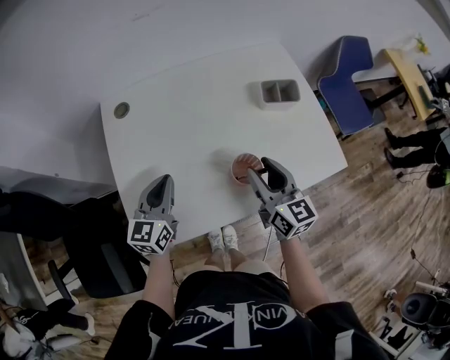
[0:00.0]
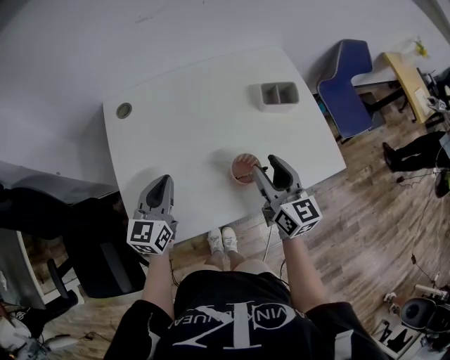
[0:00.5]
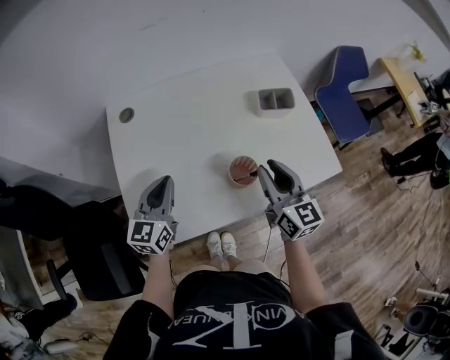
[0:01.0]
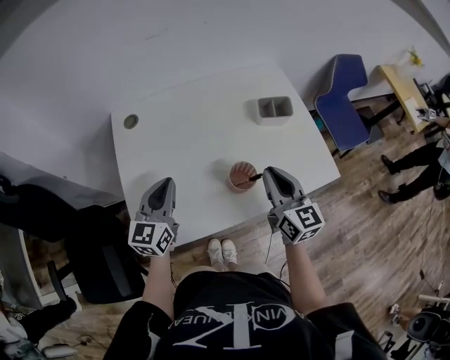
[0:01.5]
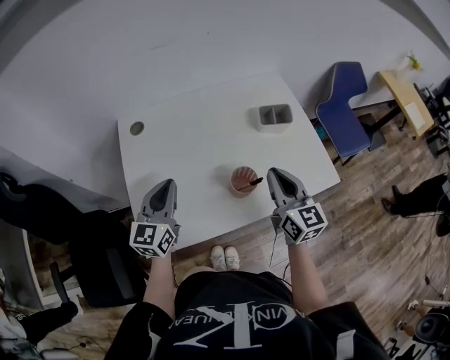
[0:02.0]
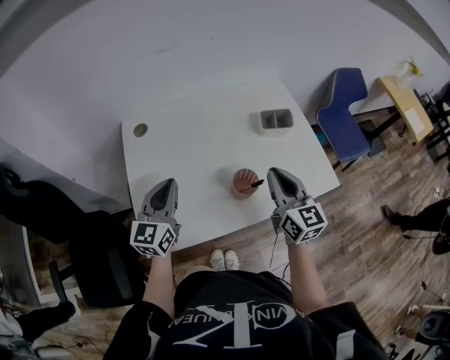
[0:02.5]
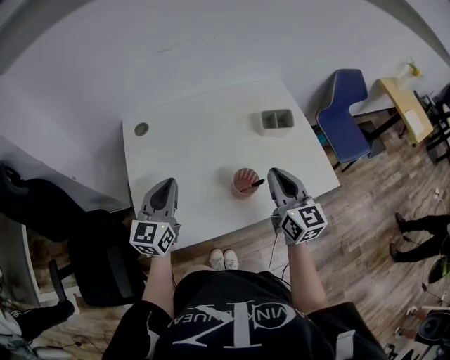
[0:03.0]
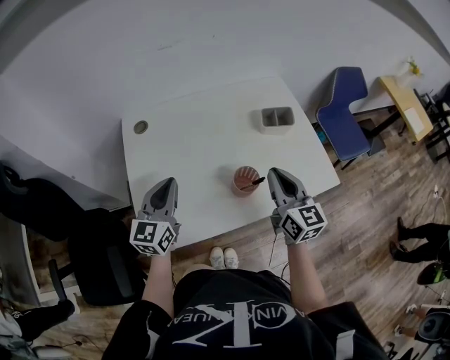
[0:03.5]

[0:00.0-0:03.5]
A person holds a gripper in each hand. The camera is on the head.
0:00.0 to 0:02.0: The two grippers go some 5 cm upward. The right gripper closes.
0:02.0 to 0:03.5: The grippers stay close to where they were, moving slightly.

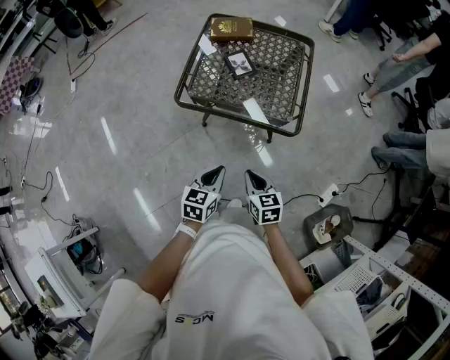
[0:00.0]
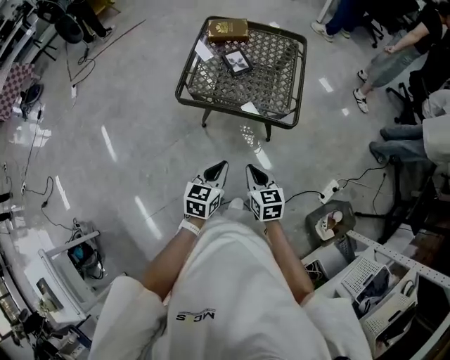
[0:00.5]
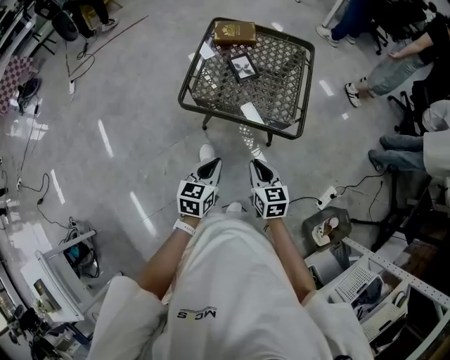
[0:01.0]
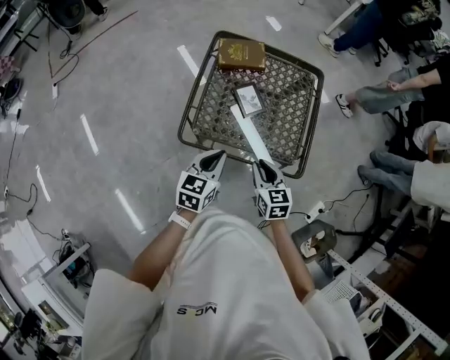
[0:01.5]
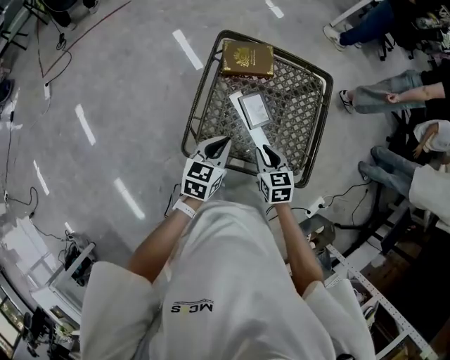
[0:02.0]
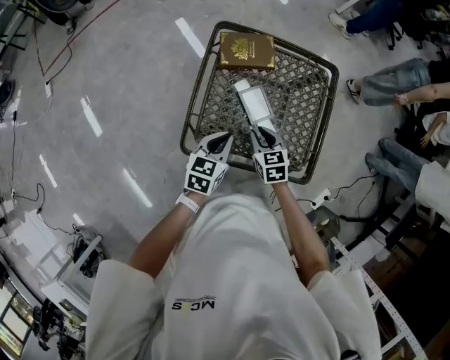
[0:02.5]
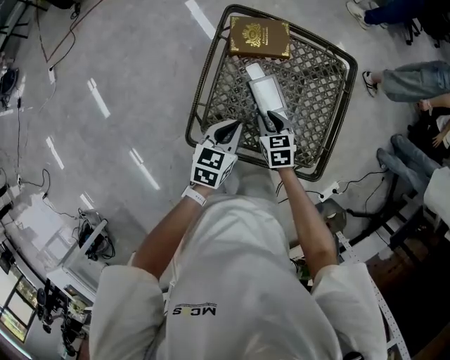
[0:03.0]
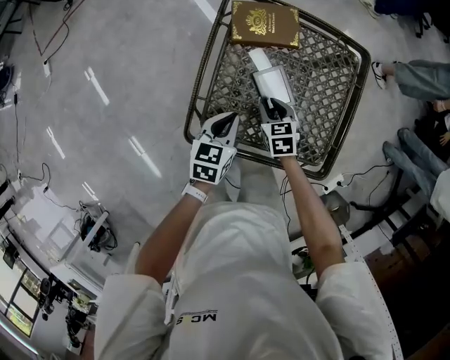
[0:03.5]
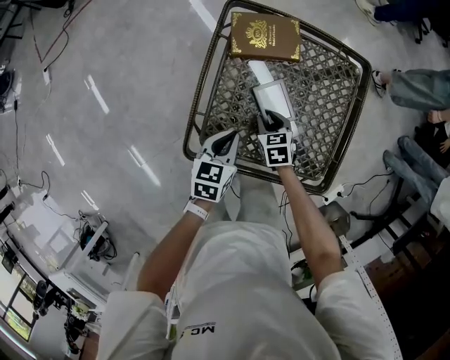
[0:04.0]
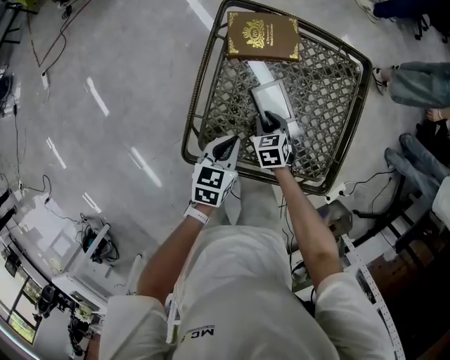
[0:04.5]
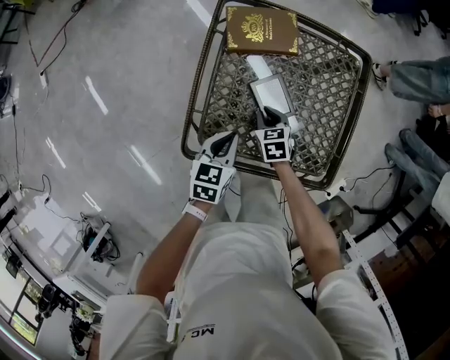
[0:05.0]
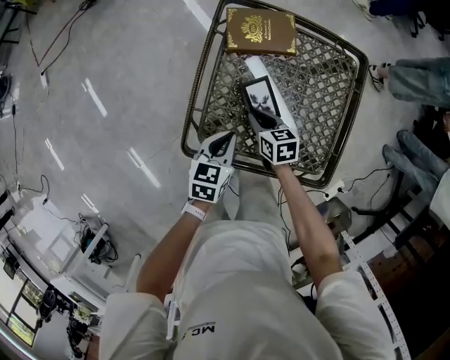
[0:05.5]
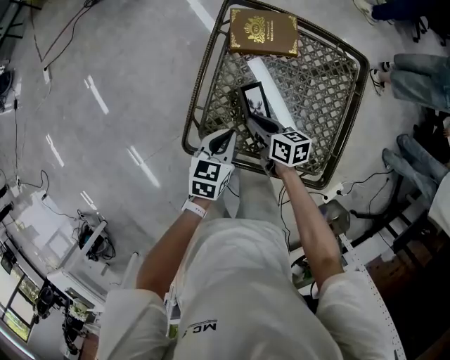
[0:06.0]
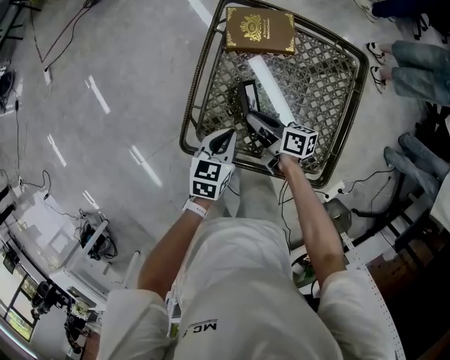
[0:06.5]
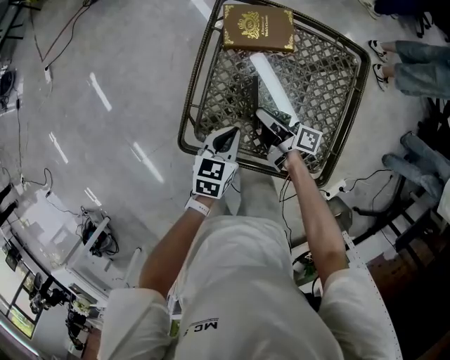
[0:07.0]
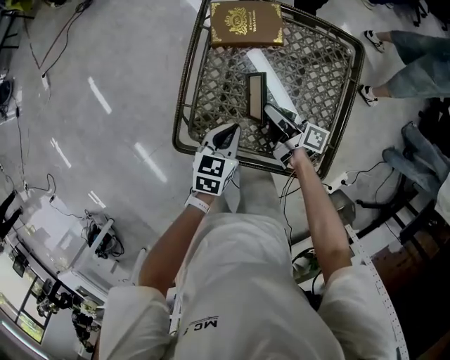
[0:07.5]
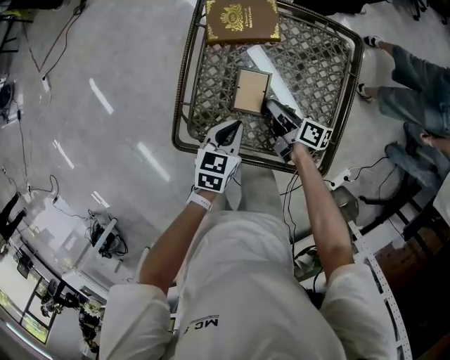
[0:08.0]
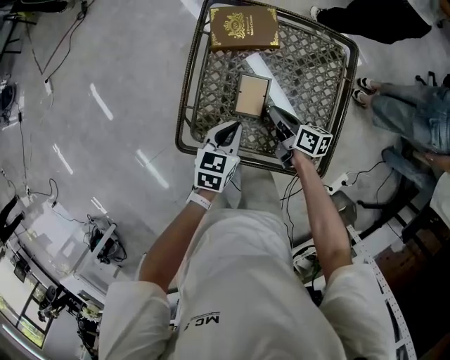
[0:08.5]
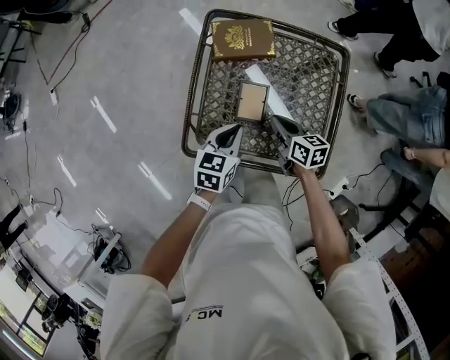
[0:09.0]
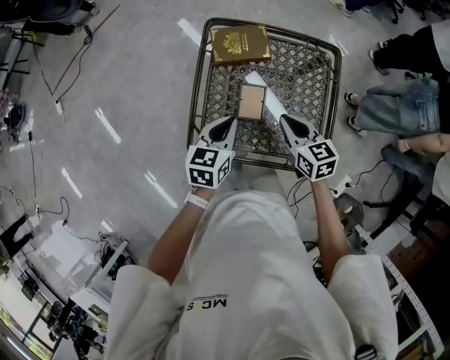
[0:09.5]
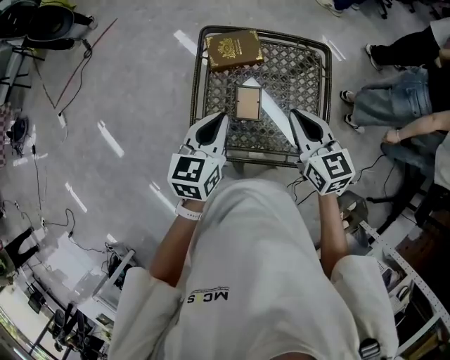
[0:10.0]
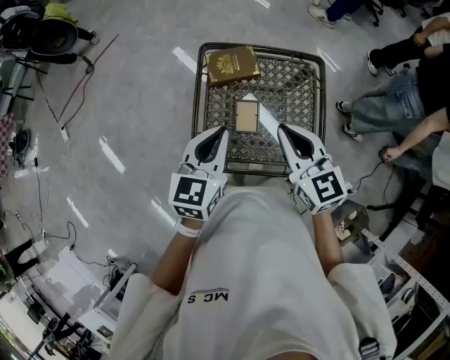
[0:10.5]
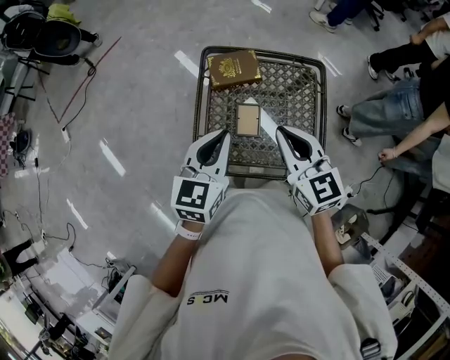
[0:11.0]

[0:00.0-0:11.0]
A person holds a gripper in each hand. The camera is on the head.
0:00.0 to 0:02.0: Both grippers travel together forward, about 35 cm.
0:02.0 to 0:03.5: The left gripper shifts about 10 cm downward and forward; the right gripper goes about 15 cm downward and forward.
0:03.5 to 0:05.5: There are only small adjustments of the grippers.
0:05.5 to 0:07.5: The grippers both shift to the right by some 5 cm. The right gripper tilts its fingers about 40 degrees upward.
0:07.5 to 0:09.0: The left gripper goes about 5 cm upward, while the right gripper rotates roughly 40 degrees.
0:09.0 to 0:11.0: The grippers both shift upward by roughly 25 cm. The left gripper rotates some 20 degrees, while the right gripper changes its angle by about 40 degrees.

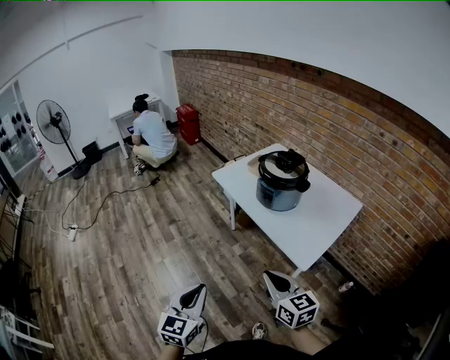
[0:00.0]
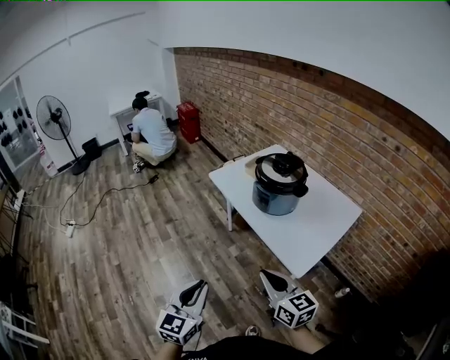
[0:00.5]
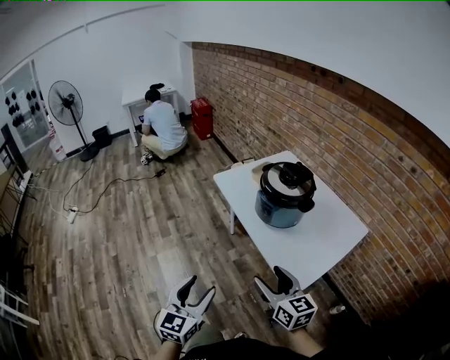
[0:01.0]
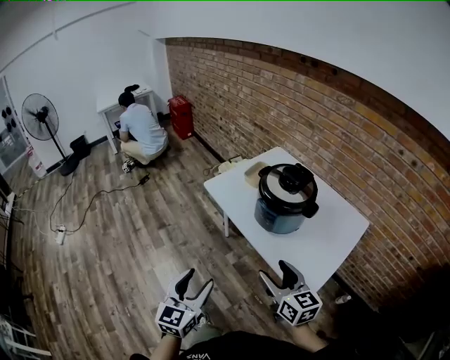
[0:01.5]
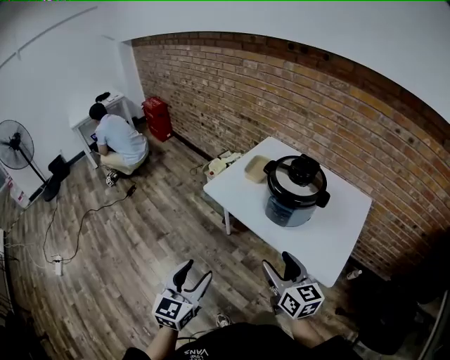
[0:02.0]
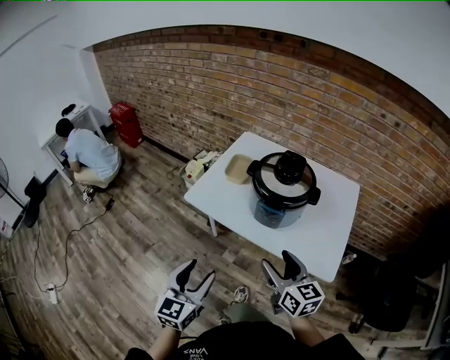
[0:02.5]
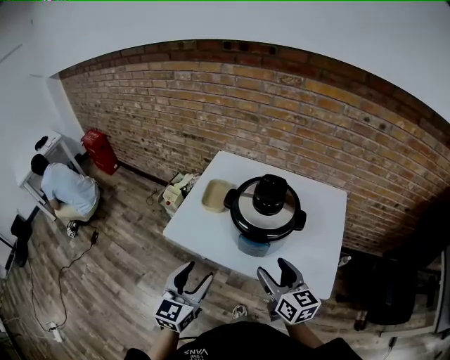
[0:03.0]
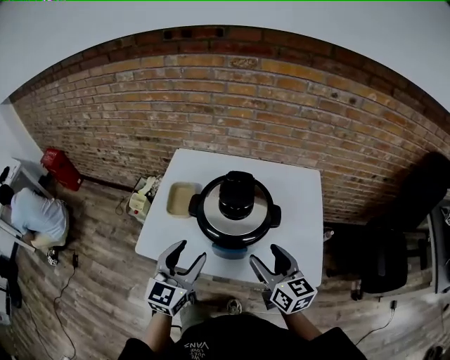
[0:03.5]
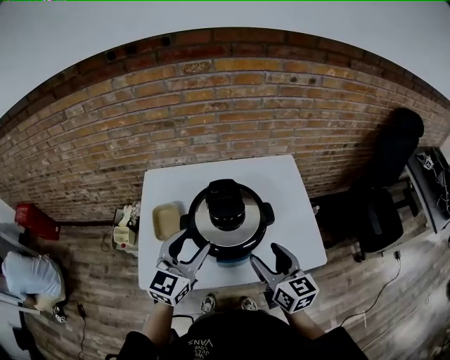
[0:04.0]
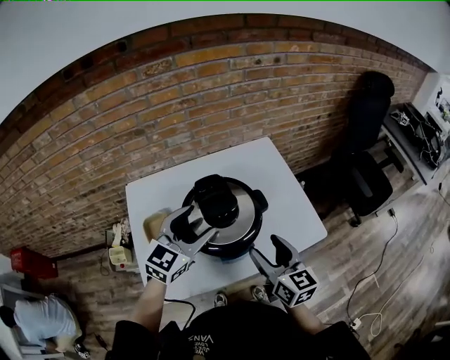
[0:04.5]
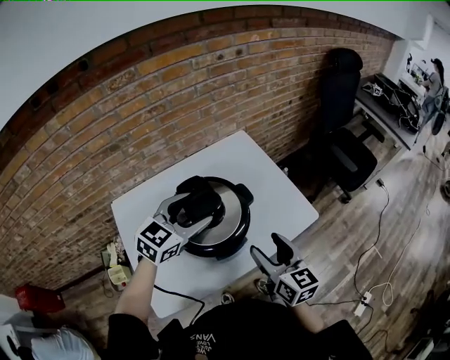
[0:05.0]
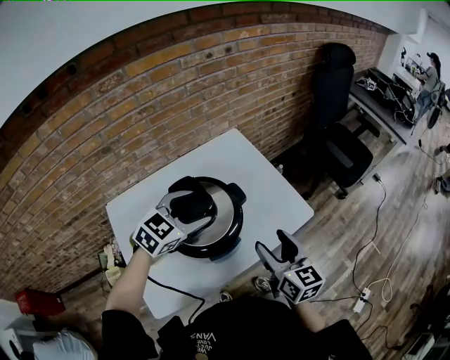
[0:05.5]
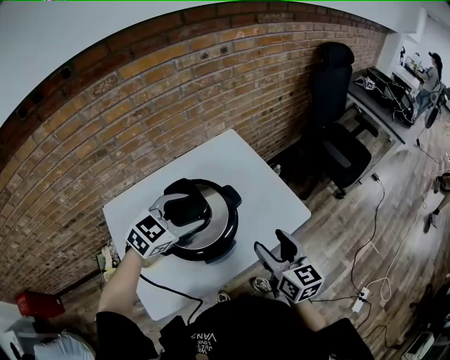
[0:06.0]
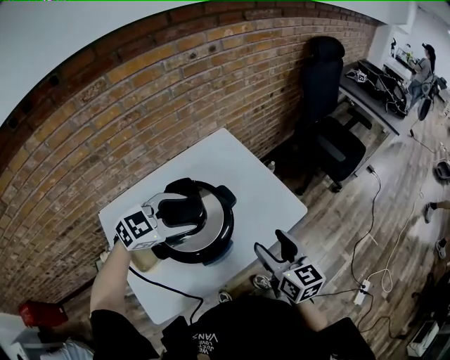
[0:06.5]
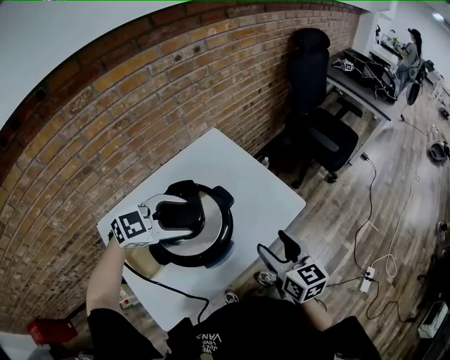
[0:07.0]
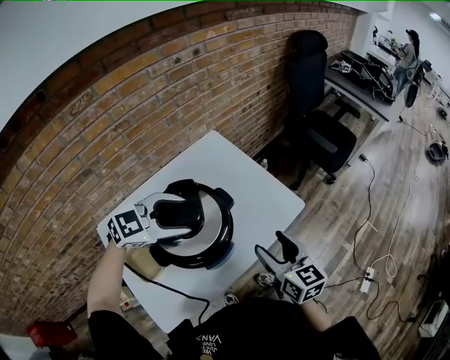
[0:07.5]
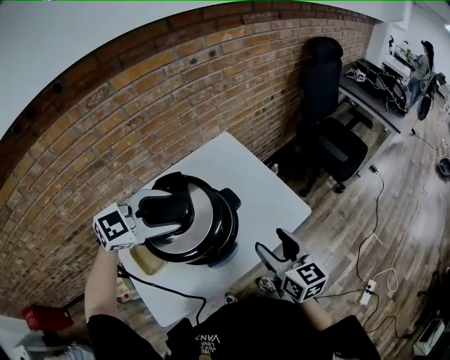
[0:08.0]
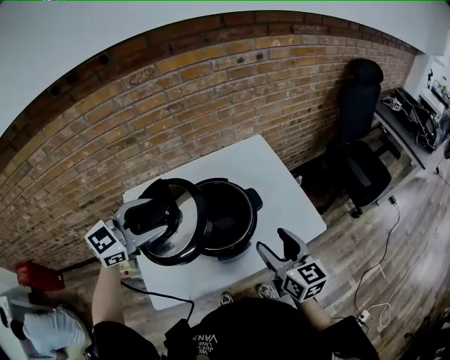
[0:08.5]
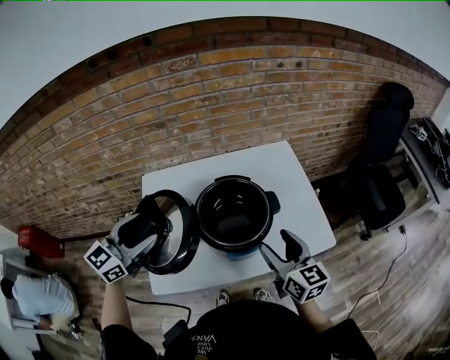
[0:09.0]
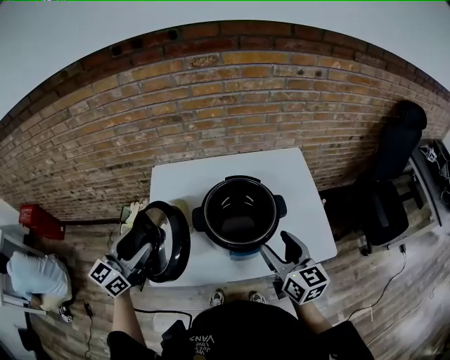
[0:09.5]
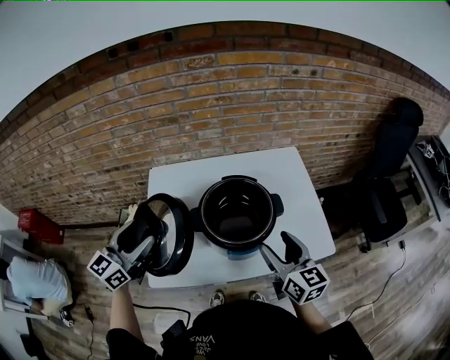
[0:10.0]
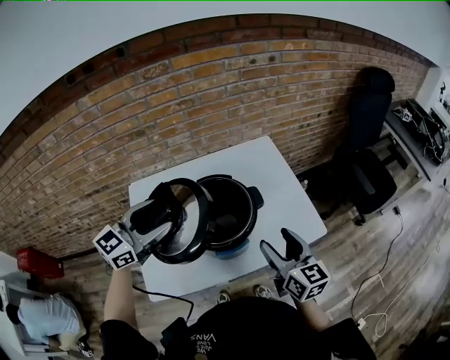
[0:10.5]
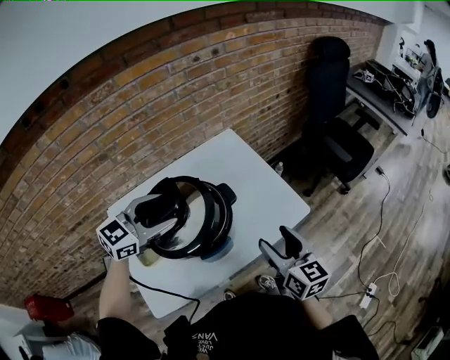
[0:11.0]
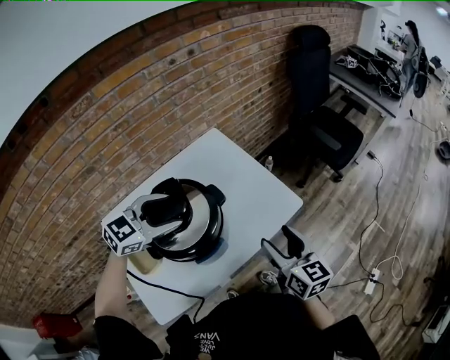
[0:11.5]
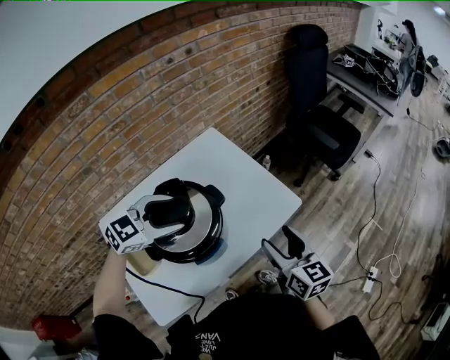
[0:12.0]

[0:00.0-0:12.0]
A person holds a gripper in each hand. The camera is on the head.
0:00.0 to 0:02.0: Both grippers travel together forward, roughly 25 cm. The left gripper opens its fingers. The right gripper turns by about 20 degrees, and opens up.
0:02.0 to 0:04.0: The right gripper changes place by approximately 20 cm, and changes its angle by about 40 degrees. The left gripper moves about 40 cm, and rotates some 50 degrees.
0:04.0 to 0:06.0: The left gripper moves roughly 15 cm, and rotates roughly 50 degrees. The right gripper shifts by roughly 5 cm, and changes its angle by roughly 30 degrees.
0:06.0 to 0:08.0: The left gripper heads upward, covering roughly 5 cm, and turns by approximately 20 degrees.
0:08.0 to 0:10.0: The left gripper ends up about 25 cm from where it was, and turns by about 70 degrees; the right gripper ends up approximately 10 cm from where it was, and swivels about 20 degrees.
0:10.0 to 0:12.0: The left gripper changes place by roughly 30 cm, and swivels about 70 degrees. The right gripper ends up roughly 15 cm from where it was, and swivels approximately 30 degrees.
